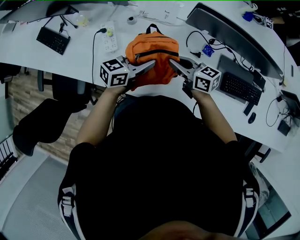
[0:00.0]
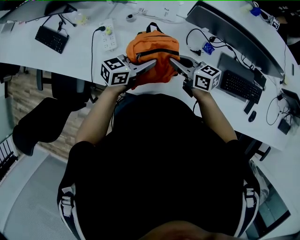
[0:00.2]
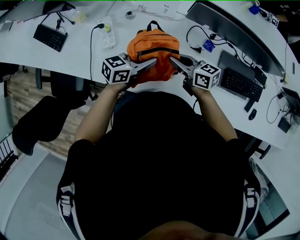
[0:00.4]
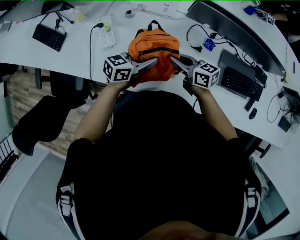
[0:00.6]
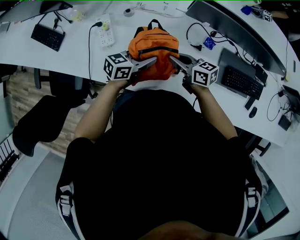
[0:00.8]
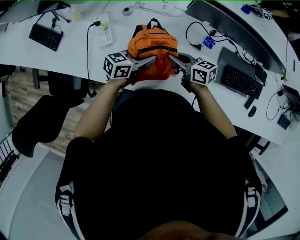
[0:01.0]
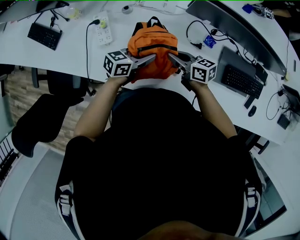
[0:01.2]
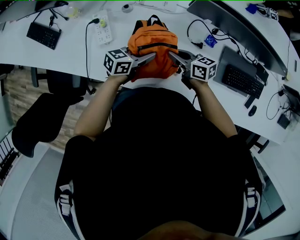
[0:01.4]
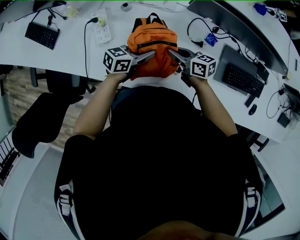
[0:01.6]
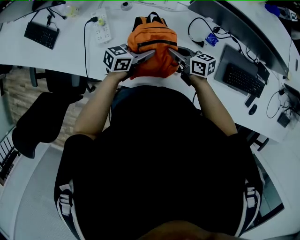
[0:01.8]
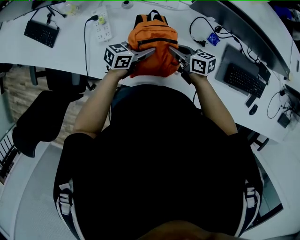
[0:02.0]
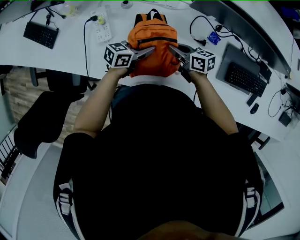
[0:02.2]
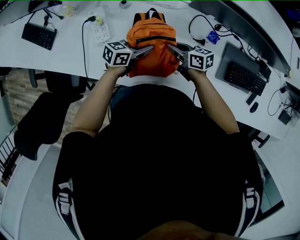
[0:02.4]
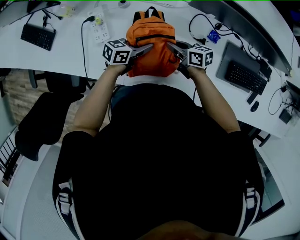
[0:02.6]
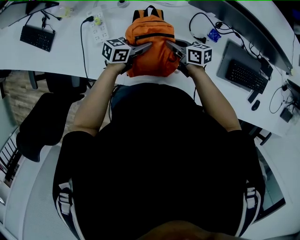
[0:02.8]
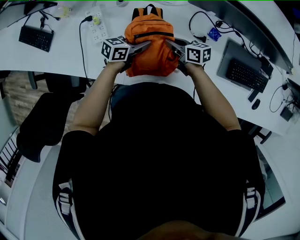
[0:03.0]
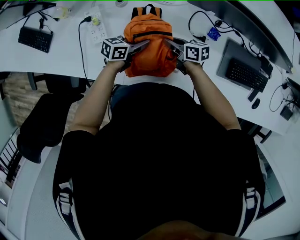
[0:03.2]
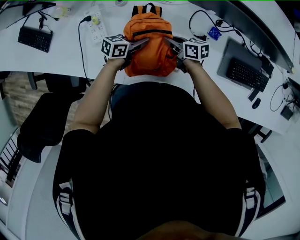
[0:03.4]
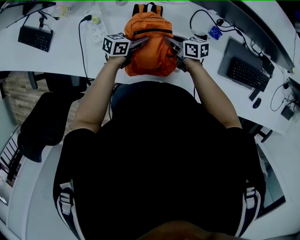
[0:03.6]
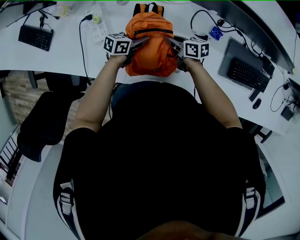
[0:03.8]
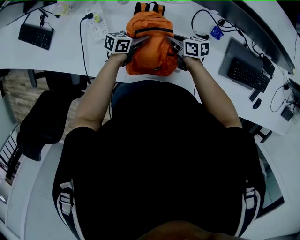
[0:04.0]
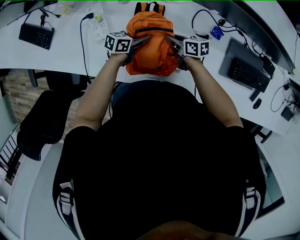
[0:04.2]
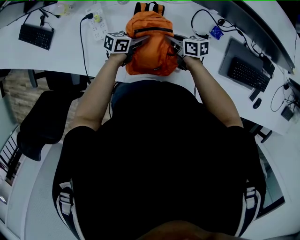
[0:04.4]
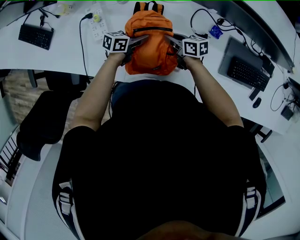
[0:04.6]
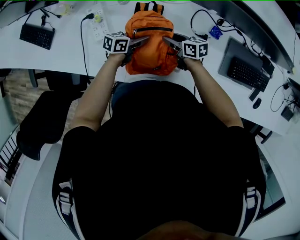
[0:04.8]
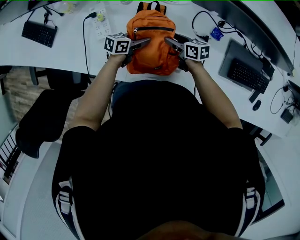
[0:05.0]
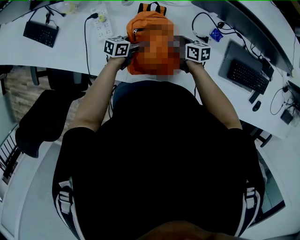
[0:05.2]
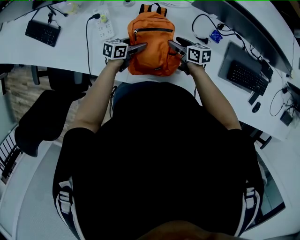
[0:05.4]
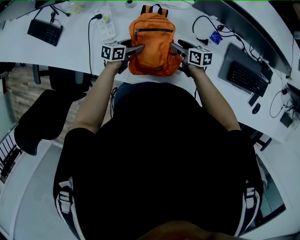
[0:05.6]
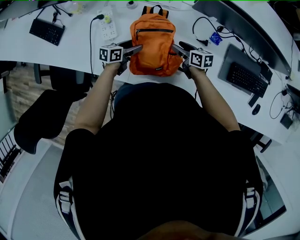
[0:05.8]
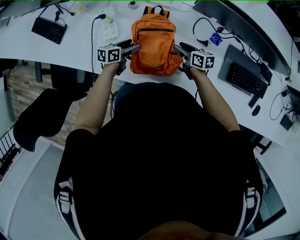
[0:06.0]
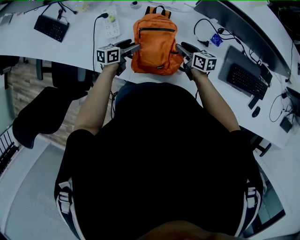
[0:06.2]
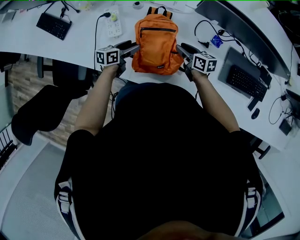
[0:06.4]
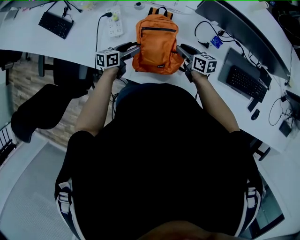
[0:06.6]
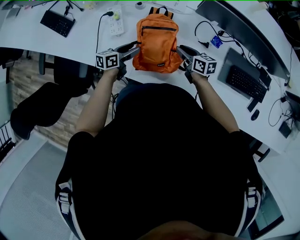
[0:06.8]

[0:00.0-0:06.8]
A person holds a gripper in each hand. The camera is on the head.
0:00.0 to 0:01.4: The two grippers go about 10 cm downward.
0:01.4 to 0:02.8: The grippers both shift downward by some 5 cm.
0:02.8 to 0:04.0: The left gripper travels downward by about 5 cm.
0:04.0 to 0:05.4: The left gripper moves roughly 5 cm, and opens its fingers. The right gripper opens.
0:05.4 to 0:06.8: The left gripper travels upward, backward and to the left by roughly 10 cm, while the right gripper heads upward and backward, covering roughly 10 cm, and closes.

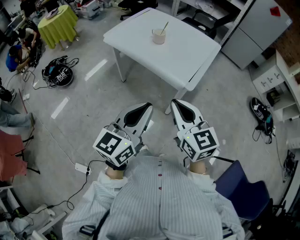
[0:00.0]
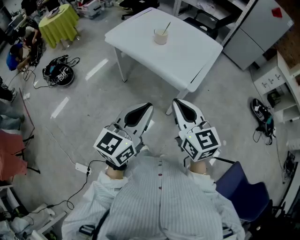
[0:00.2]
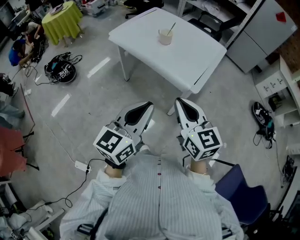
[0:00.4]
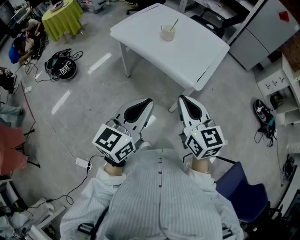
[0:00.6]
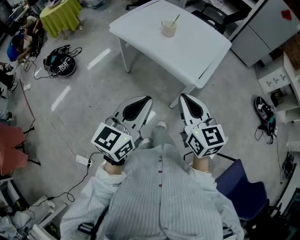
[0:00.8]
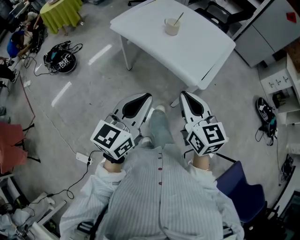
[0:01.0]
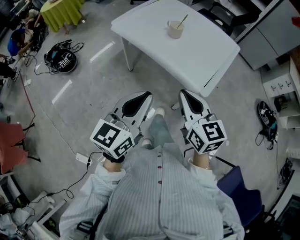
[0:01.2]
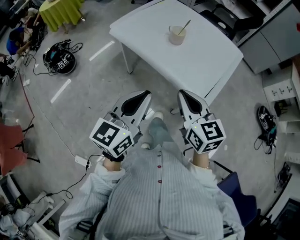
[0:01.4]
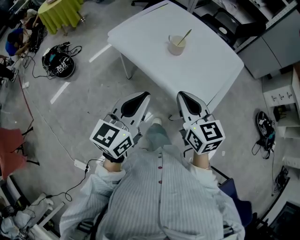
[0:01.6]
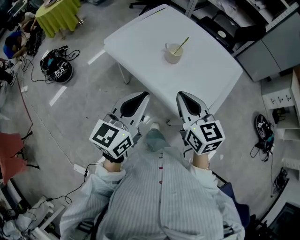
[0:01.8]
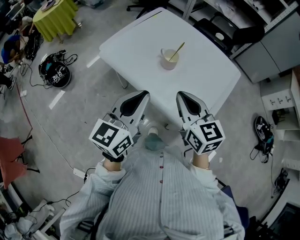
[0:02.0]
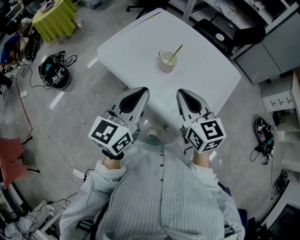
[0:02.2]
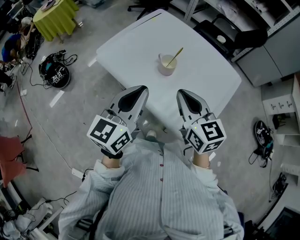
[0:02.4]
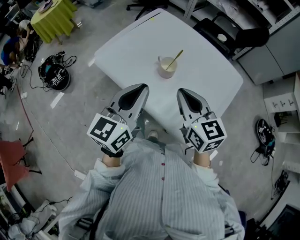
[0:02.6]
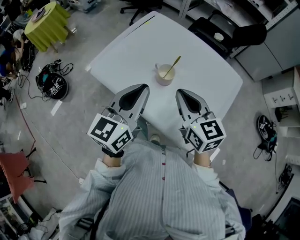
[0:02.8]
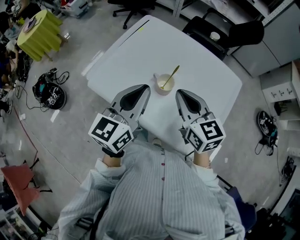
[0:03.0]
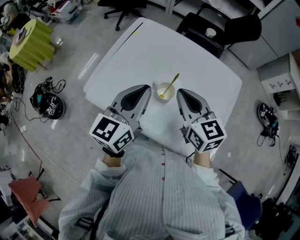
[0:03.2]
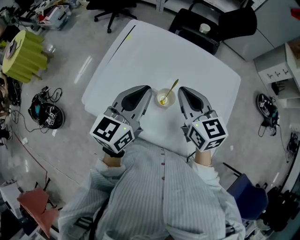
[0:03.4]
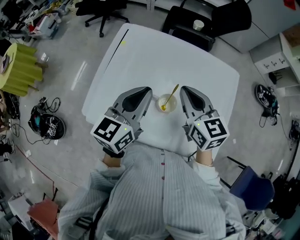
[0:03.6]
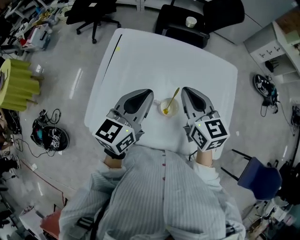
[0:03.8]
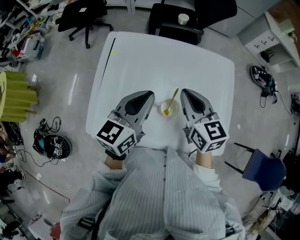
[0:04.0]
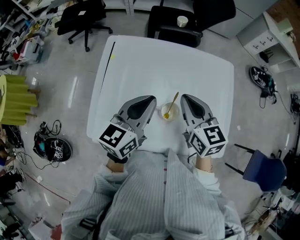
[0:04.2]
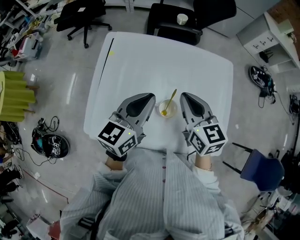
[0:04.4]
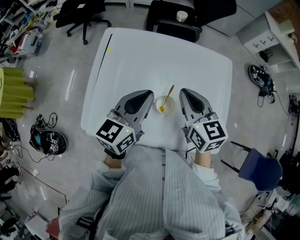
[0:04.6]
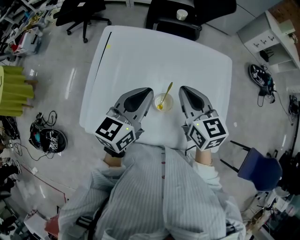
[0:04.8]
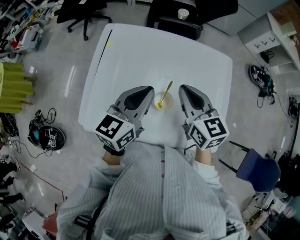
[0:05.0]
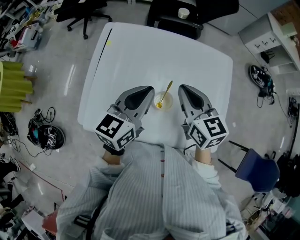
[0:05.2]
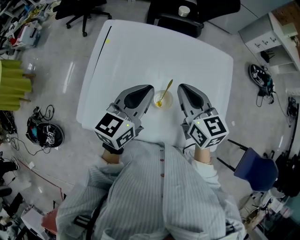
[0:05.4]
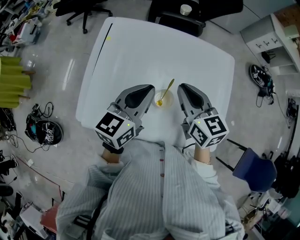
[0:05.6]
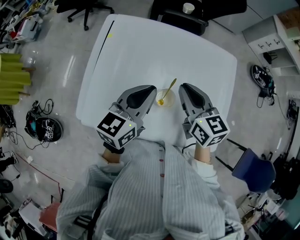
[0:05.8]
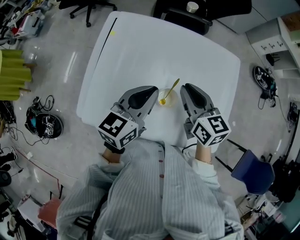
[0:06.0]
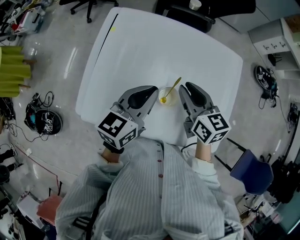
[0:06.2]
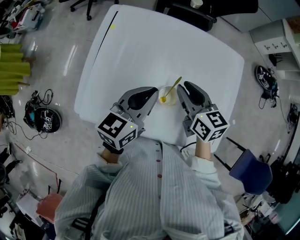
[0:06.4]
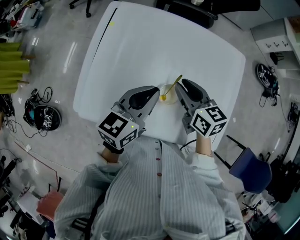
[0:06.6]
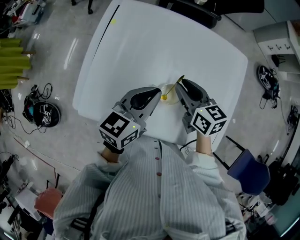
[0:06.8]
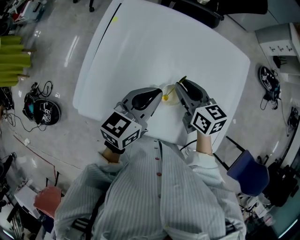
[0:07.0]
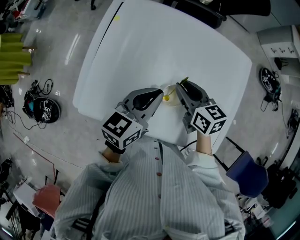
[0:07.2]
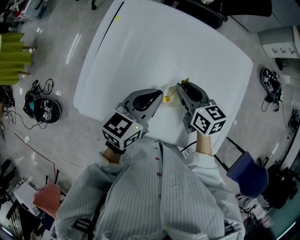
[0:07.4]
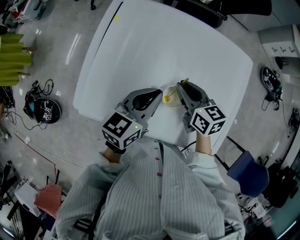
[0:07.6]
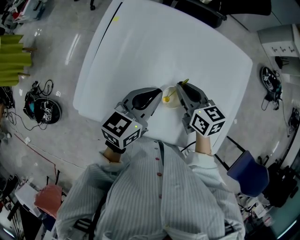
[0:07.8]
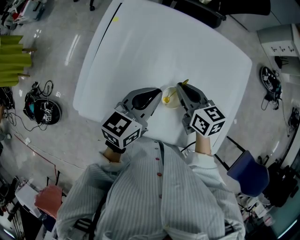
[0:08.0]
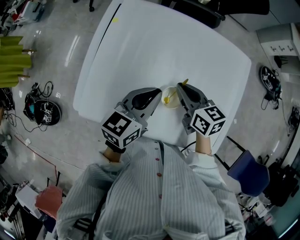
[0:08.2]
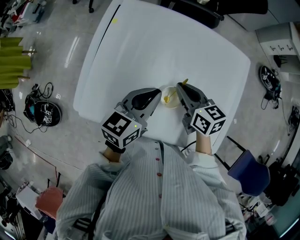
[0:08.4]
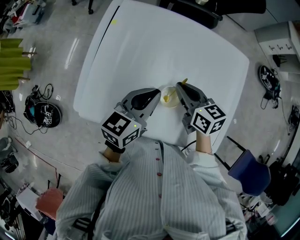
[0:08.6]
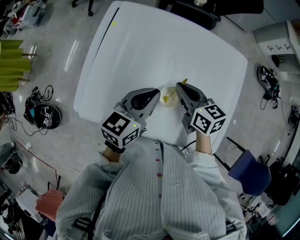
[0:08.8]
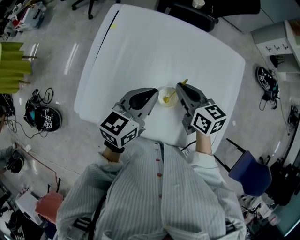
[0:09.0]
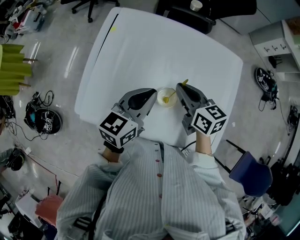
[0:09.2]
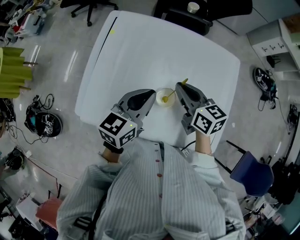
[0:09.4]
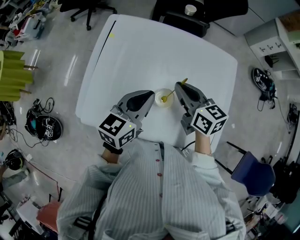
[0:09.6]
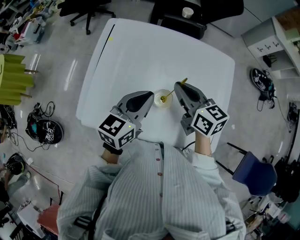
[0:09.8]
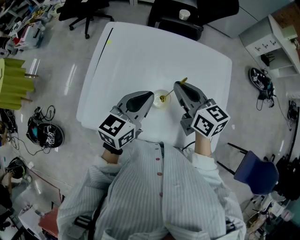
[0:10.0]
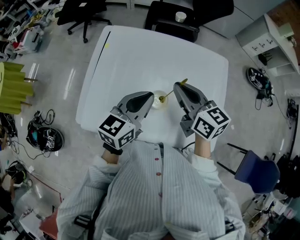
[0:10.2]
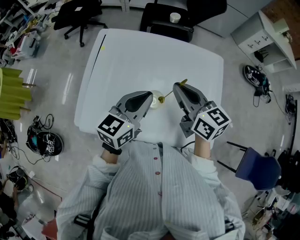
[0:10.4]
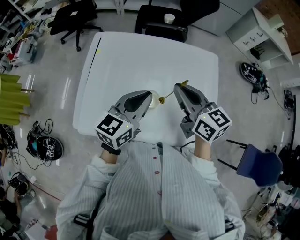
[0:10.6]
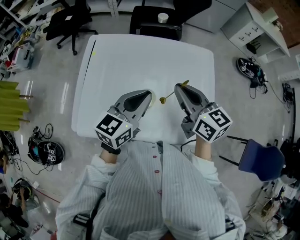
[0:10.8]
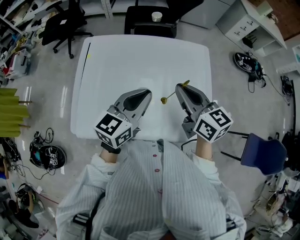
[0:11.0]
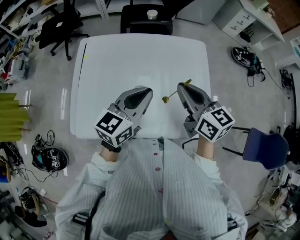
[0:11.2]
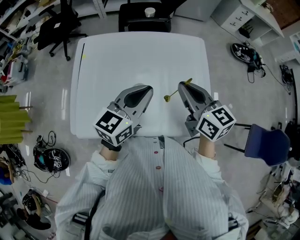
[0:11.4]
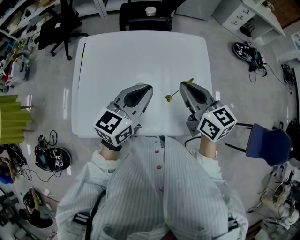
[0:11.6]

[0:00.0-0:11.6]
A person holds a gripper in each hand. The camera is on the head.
0:00.0 to 0:01.4: Both grippers move forward, about 20 cm.
0:01.4 to 0:02.8: Both grippers travel together forward, roughly 30 cm.
0:02.8 to 0:04.4: The right gripper shifts by roughly 20 cm, and turns by approximately 30 degrees. The left gripper ends up roughly 20 cm from where it was, and changes its angle by approximately 30 degrees.
0:04.4 to 0:05.8: The grippers move only a little.
0:05.8 to 0:07.2: The right gripper goes some 10 cm downward. The left gripper moves downward, roughly 5 cm.
0:07.2 to 0:08.8: Neither gripper changes place.
0:08.8 to 0:10.2: The right gripper shifts some 15 cm upward. Meanwhile the left gripper travels upward by some 5 cm.
0:10.2 to 0:11.6: The grippers both shift to the right by approximately 10 cm.

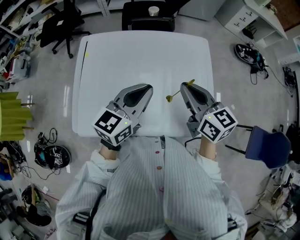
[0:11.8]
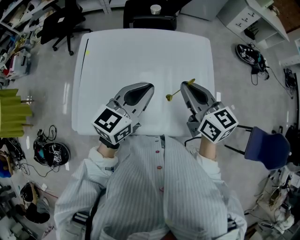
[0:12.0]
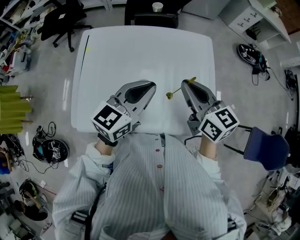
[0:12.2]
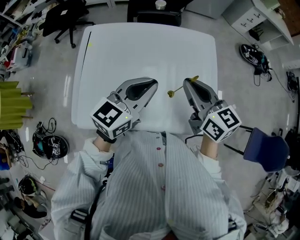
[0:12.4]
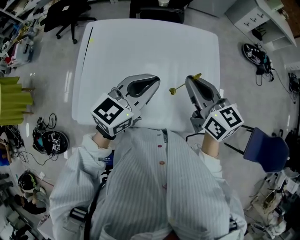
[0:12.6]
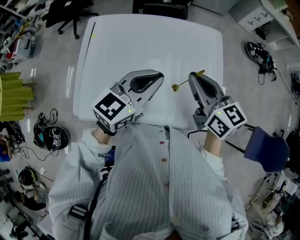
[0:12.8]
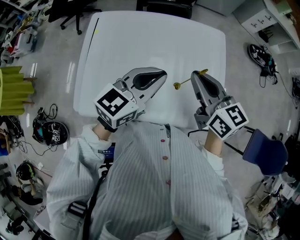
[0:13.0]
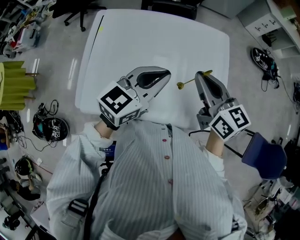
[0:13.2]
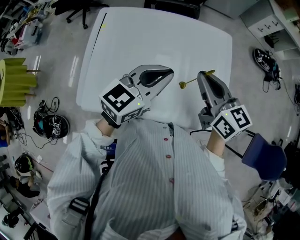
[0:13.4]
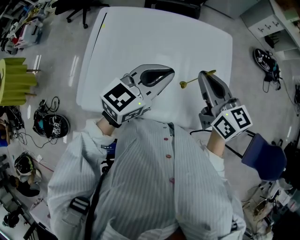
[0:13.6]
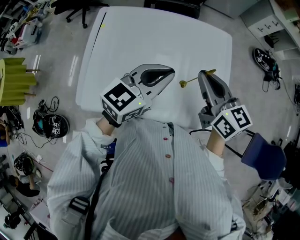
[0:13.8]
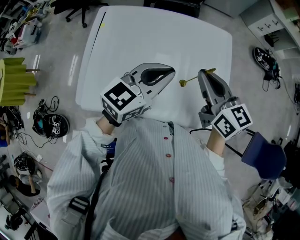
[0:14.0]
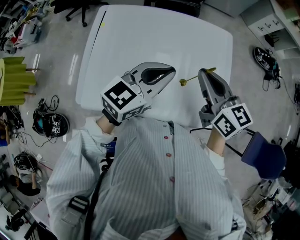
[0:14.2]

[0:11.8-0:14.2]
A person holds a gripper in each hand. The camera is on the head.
0:11.8 to 0:13.0: The grippers move only a little.
0:13.0 to 0:14.2: The two grippers keep their place.

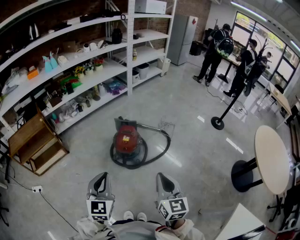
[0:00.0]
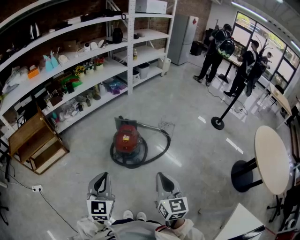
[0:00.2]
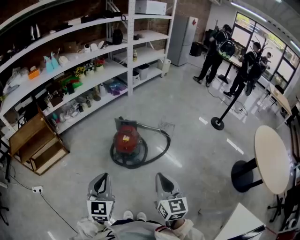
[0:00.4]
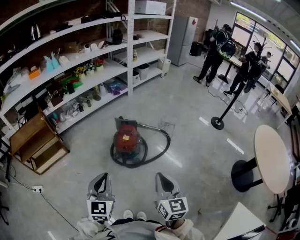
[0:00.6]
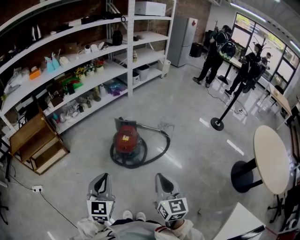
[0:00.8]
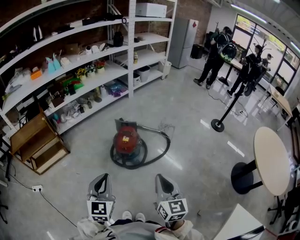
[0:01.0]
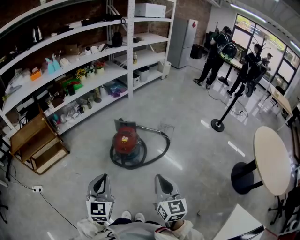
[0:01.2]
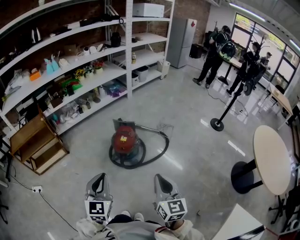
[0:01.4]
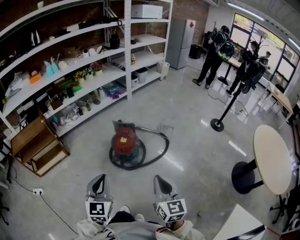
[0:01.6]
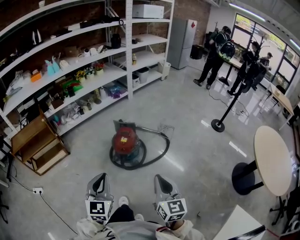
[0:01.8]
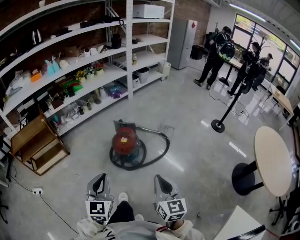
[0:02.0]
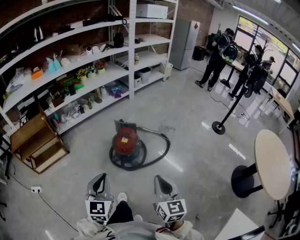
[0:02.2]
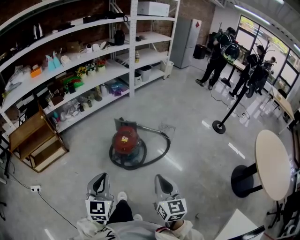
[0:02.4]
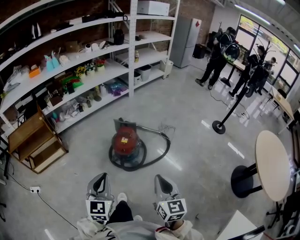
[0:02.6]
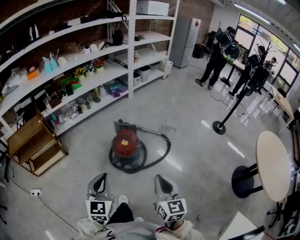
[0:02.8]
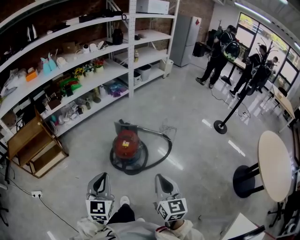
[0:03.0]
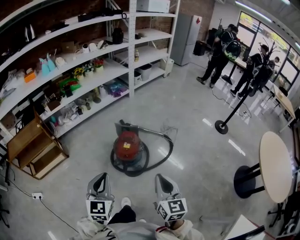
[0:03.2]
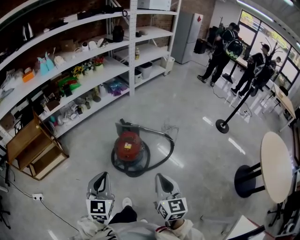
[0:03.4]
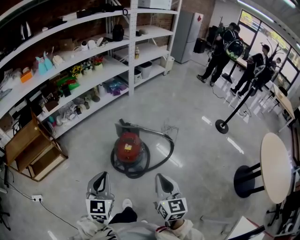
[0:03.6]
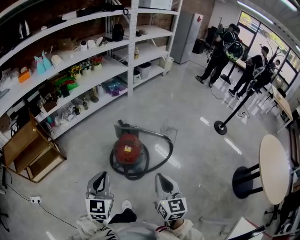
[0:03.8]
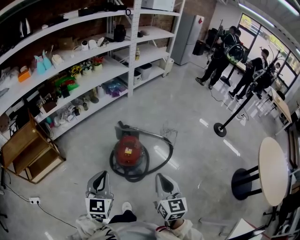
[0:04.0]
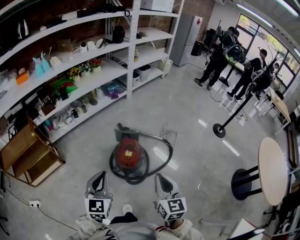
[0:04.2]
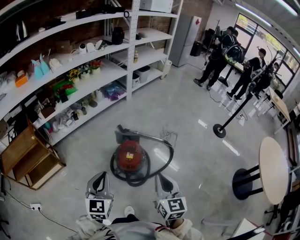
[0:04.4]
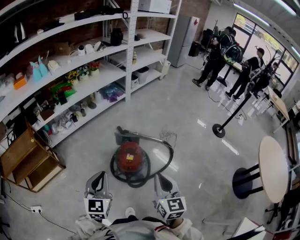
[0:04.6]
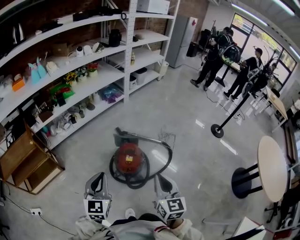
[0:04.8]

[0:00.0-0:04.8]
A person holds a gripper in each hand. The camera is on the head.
0:00.0 to 0:01.6: The grippers make only small movements.
0:01.6 to 0:03.2: Both grippers move forward, approximately 10 cm.
0:03.2 to 0:04.8: Both grippers move forward and to the left, some 15 cm.
